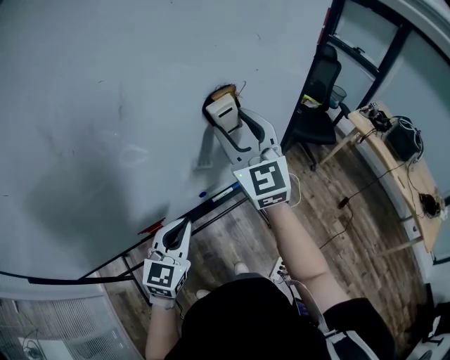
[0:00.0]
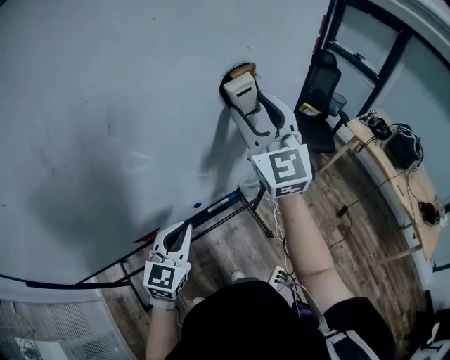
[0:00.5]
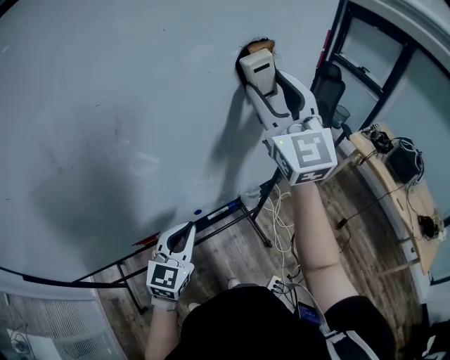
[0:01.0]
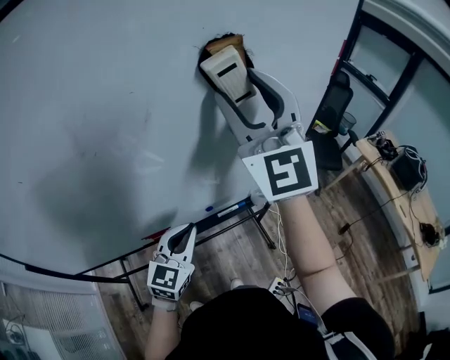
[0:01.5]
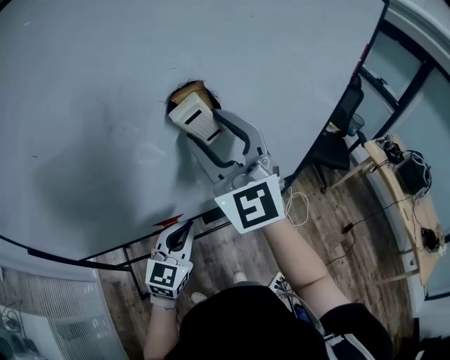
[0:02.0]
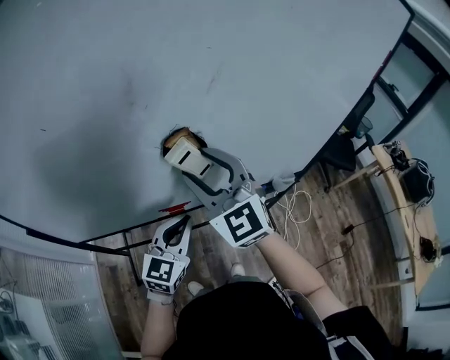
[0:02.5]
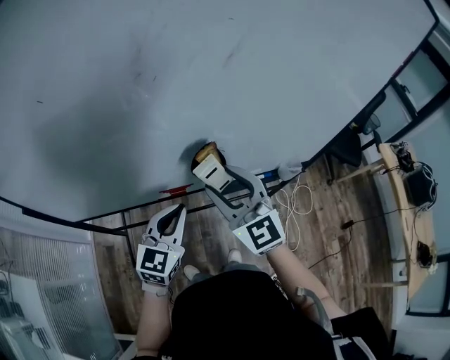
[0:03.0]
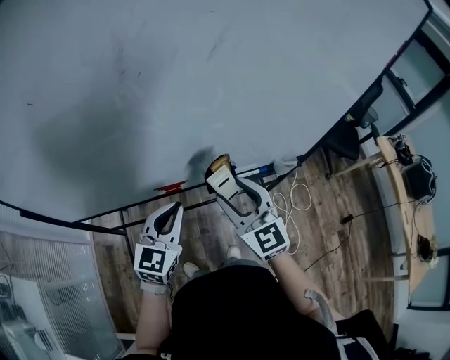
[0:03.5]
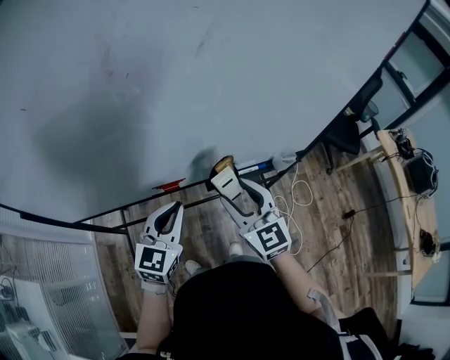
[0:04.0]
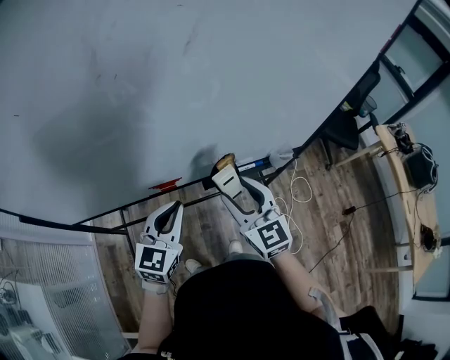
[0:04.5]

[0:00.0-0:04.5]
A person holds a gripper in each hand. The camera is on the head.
0:00.0 to 0:02.0: The left gripper heads to the left, covering roughly 5 cm. The right gripper heads to the left, backward and upward, covering roughly 20 cm, and turns by some 20 degrees.
0:02.0 to 0:04.5: The right gripper shifts about 25 cm downward, and rotates about 40 degrees, while the left gripper shifts by roughly 5 cm.

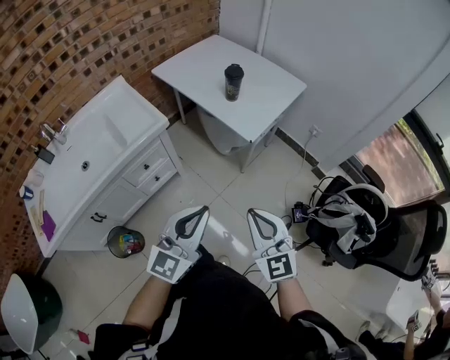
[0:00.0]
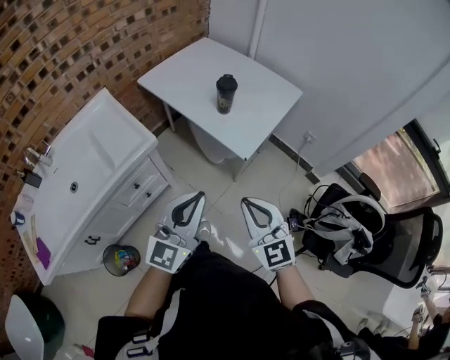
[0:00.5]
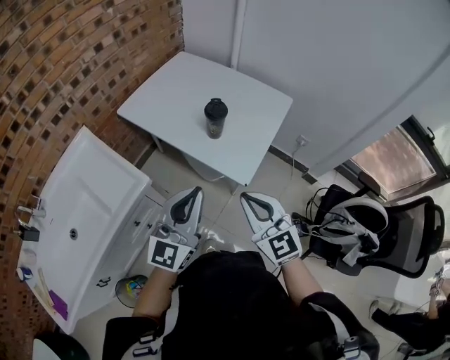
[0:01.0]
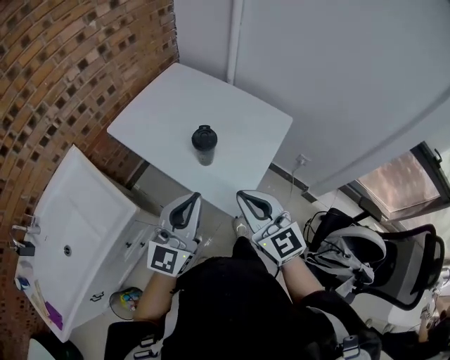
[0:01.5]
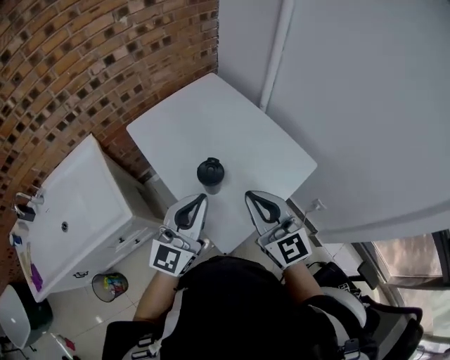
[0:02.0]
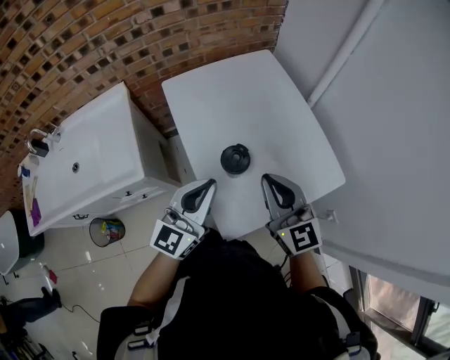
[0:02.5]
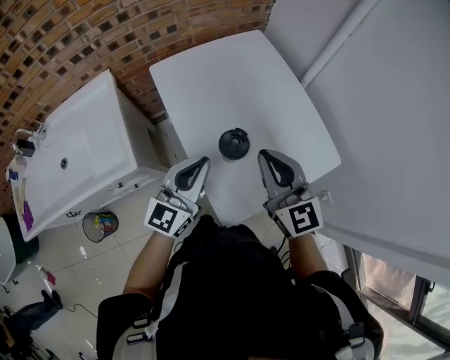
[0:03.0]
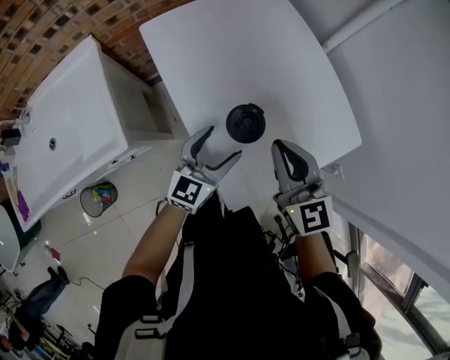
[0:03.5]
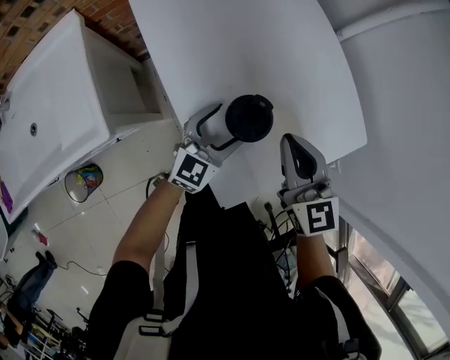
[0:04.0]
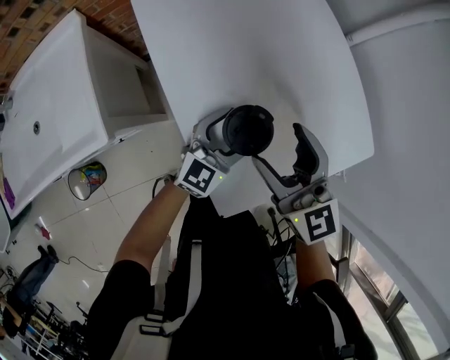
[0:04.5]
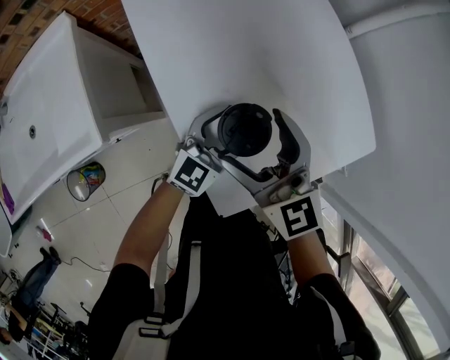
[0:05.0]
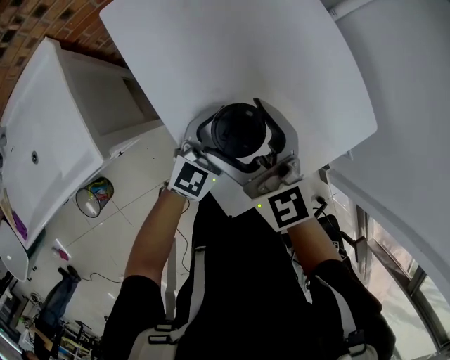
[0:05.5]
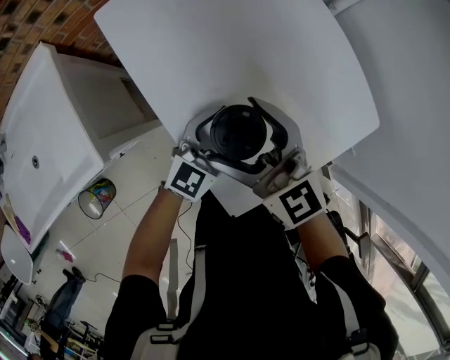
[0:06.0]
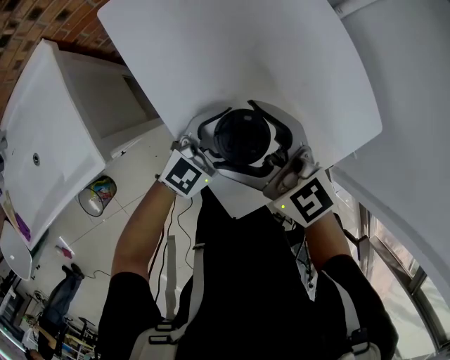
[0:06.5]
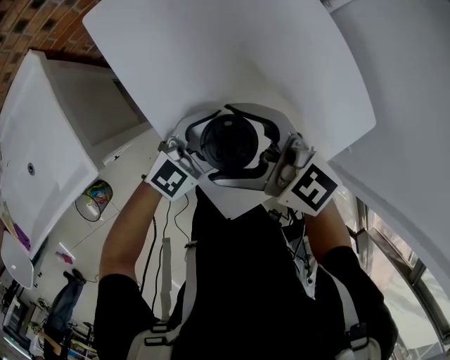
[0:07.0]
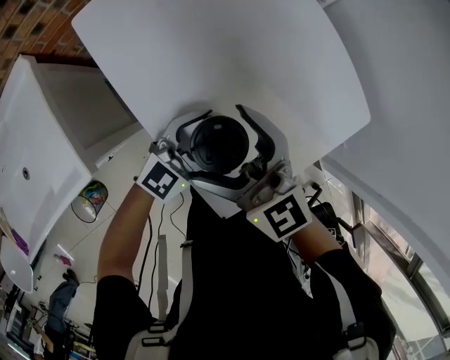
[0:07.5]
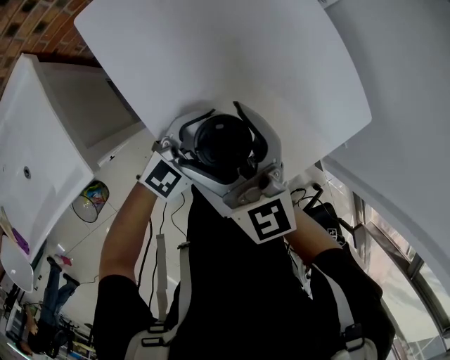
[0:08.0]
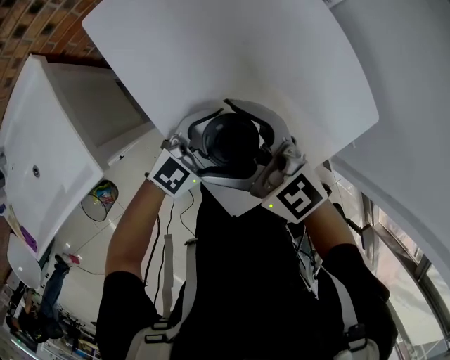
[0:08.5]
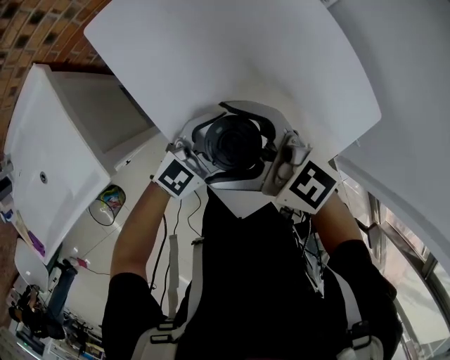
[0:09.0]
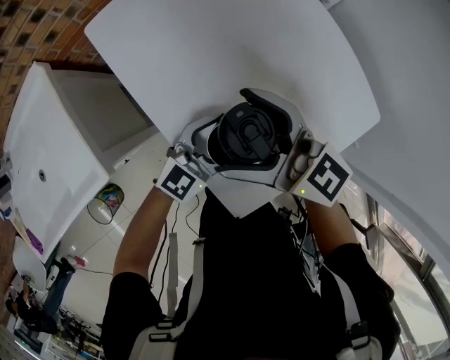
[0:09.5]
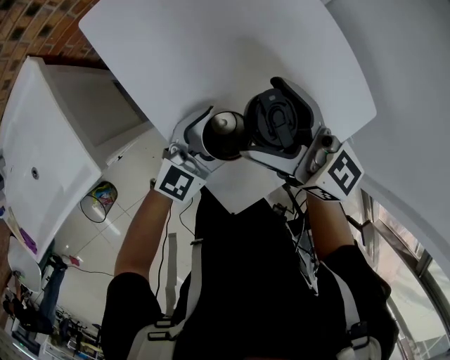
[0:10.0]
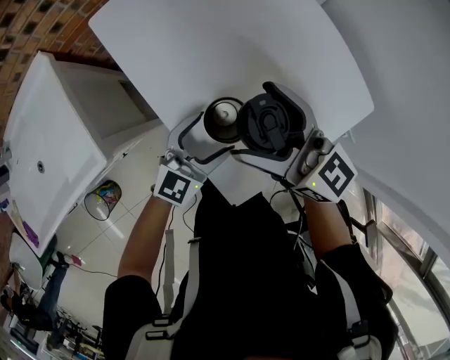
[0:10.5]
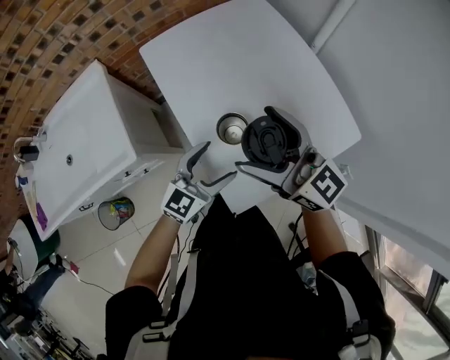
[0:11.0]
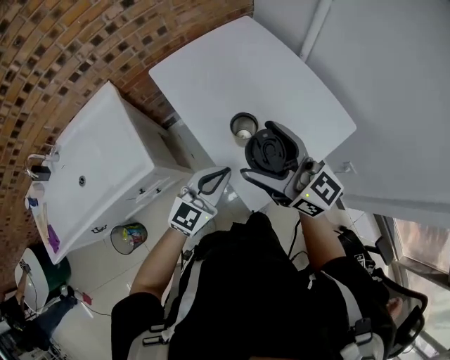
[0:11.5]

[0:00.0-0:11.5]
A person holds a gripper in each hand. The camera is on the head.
0:00.0 to 0:02.0: The pair of grippers is taken forward, roughly 50 cm.
0:02.0 to 0:04.0: The left gripper moves downward, some 25 cm, swivels approximately 30 degrees, and opens, while the right gripper goes some 20 cm downward and forward.
0:04.0 to 0:06.0: The right gripper heads to the left, covering some 10 cm, turns by roughly 20 degrees, and opens up.
0:07.5 to 0:09.5: The right gripper swivels some 20 degrees.
0:09.5 to 0:11.5: The right gripper moves upward and backward, approximately 20 cm. Meanwhile the left gripper travels upward, backward and to the left by approximately 20 cm, and closes its fingers.

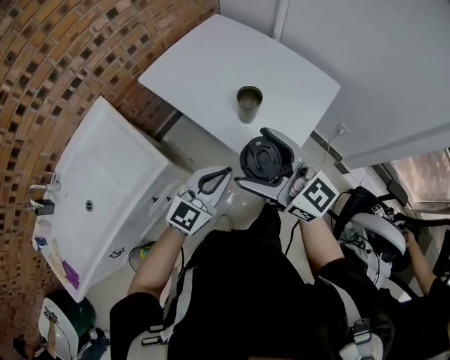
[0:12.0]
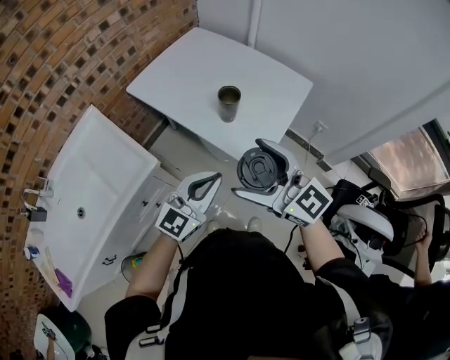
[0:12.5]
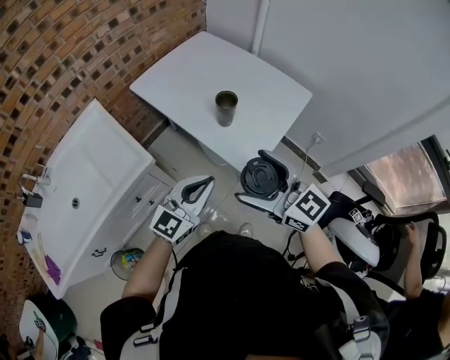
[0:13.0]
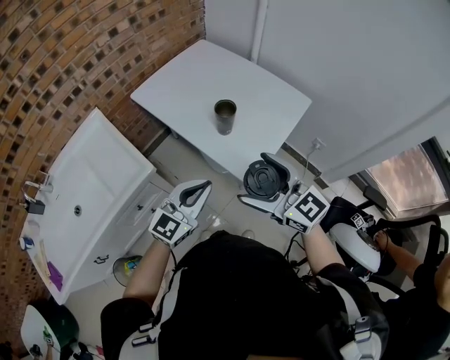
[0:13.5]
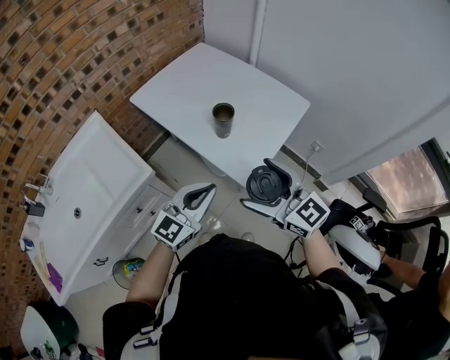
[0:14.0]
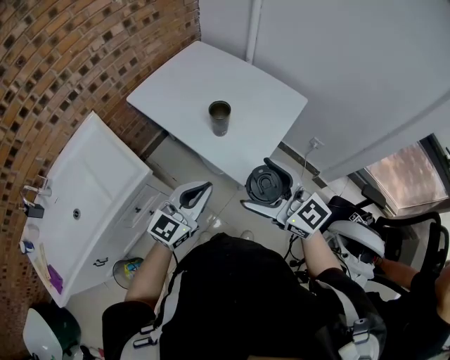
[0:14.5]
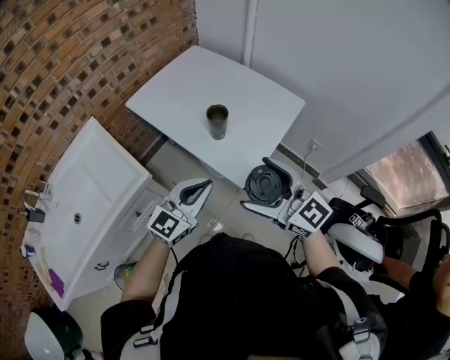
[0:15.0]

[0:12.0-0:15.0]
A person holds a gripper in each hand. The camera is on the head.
0:12.0 to 0:13.5: The right gripper goes roughly 10 cm backward and to the right, while the left gripper moves backward, roughly 5 cm.
0:13.5 to 0:15.0: There are only small adjustments of the grippers.

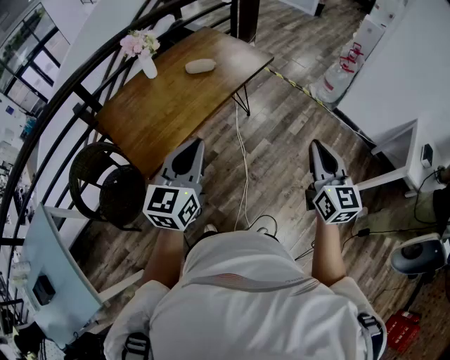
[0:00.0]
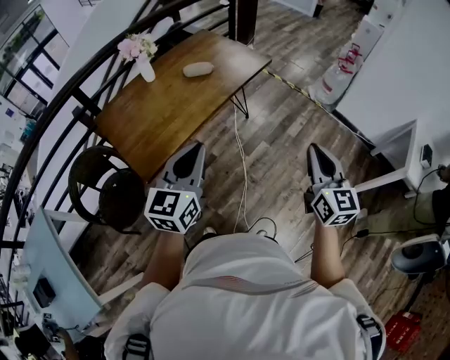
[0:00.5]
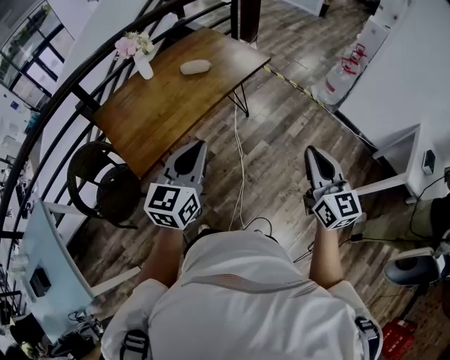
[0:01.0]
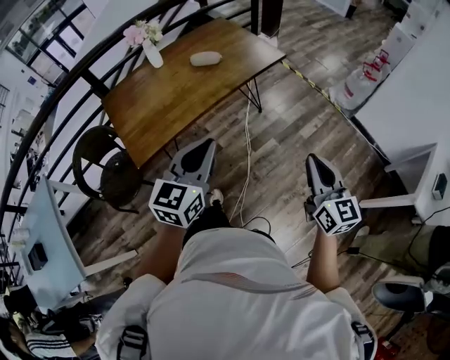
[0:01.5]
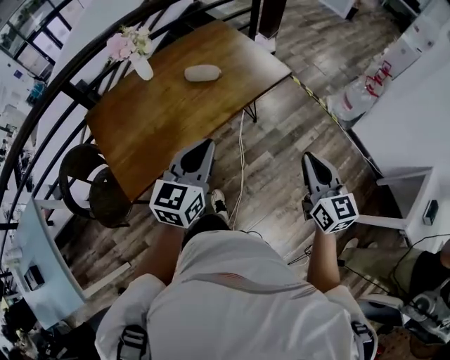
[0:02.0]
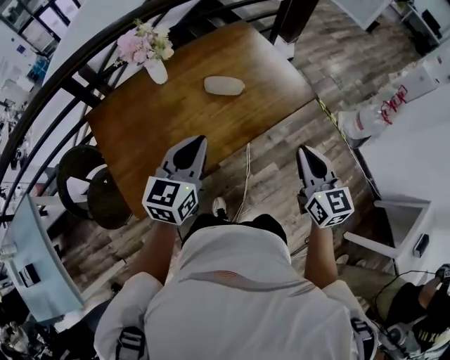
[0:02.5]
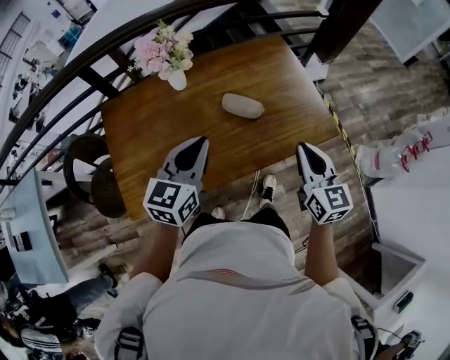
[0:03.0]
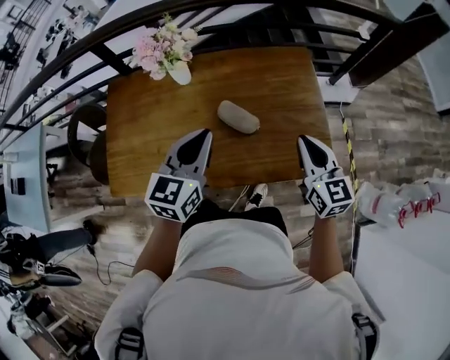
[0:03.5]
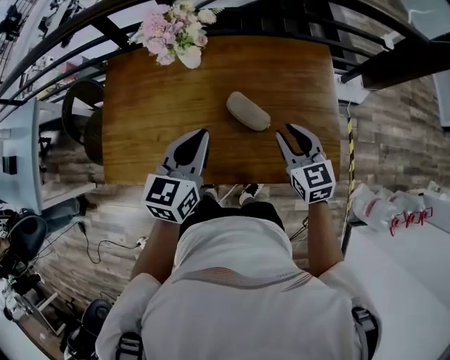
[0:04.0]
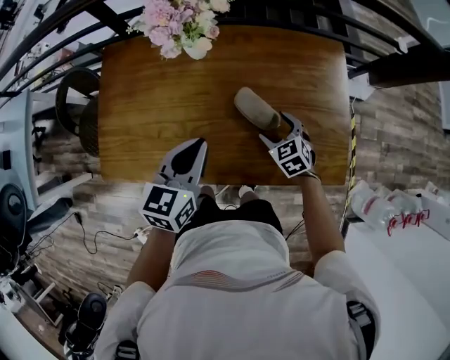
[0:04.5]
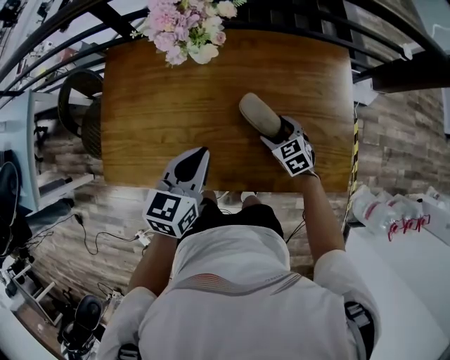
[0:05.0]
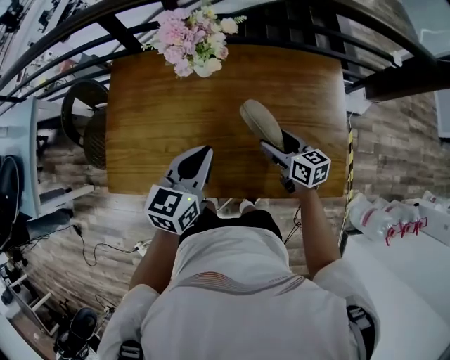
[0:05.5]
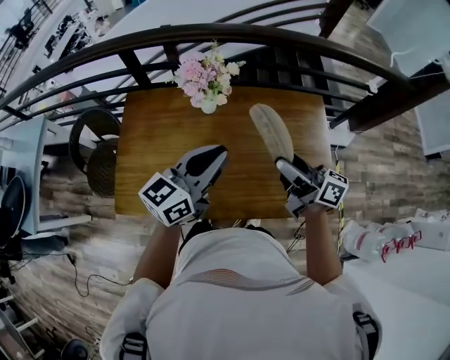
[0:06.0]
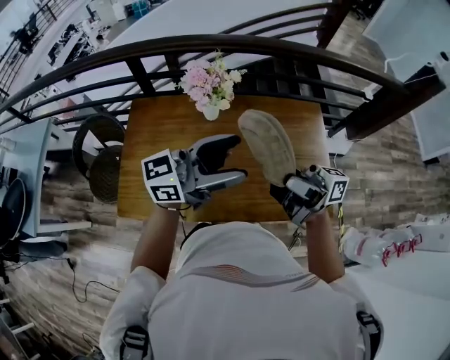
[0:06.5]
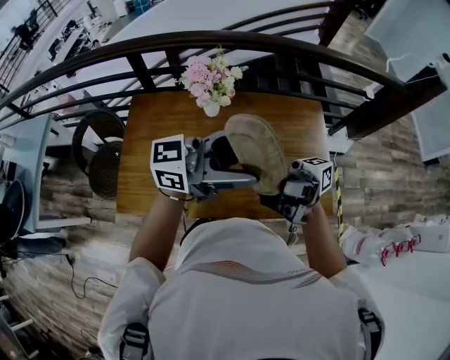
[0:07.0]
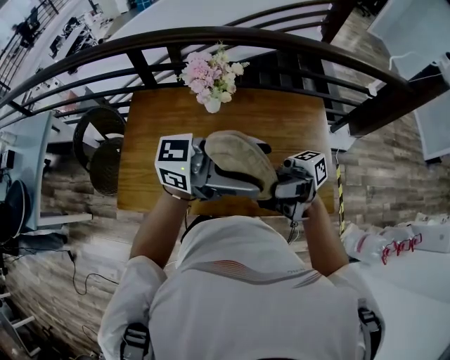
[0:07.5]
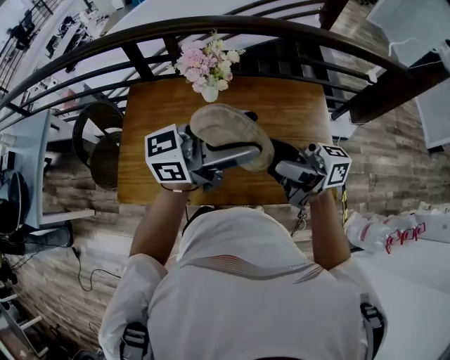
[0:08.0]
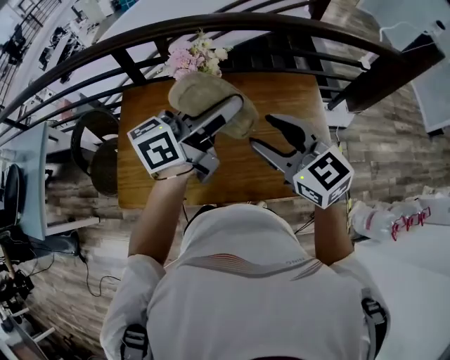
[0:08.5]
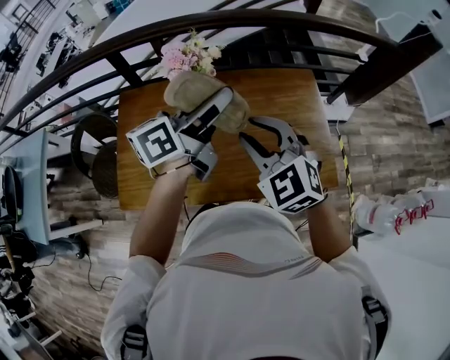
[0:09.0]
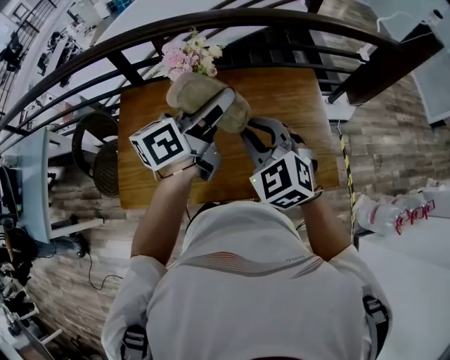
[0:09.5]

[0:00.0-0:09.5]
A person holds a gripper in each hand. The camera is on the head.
0:00.0 to 0:02.0: The grippers both shift forward by roughly 20 cm.
0:02.0 to 0:04.0: The left gripper changes place by some 35 cm, and turns by about 40 degrees. The right gripper changes place by roughly 50 cm, and swivels approximately 50 degrees.
0:04.0 to 0:05.5: The left gripper shifts by some 5 cm. The right gripper is displaced downward and to the left by about 10 cm, swivels some 30 degrees, and opens its fingers.
0:05.5 to 0:07.5: Both grippers travel together upward, roughly 25 cm. The right gripper tilts its fingers roughly 60 degrees upward, while the left gripper tips its fingers upward by roughly 40 degrees, and opens.
0:07.5 to 0:09.5: The right gripper changes place by some 10 cm, angles its fingers downward, by some 60 degrees, and closes its fingers, while the left gripper moves approximately 15 cm, and swivels some 50 degrees.
